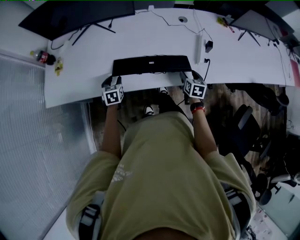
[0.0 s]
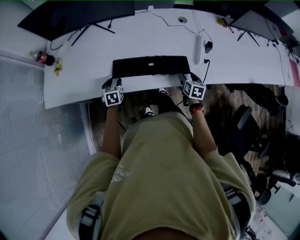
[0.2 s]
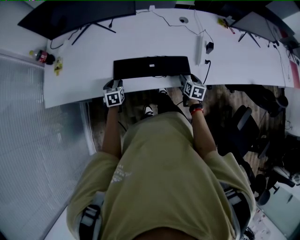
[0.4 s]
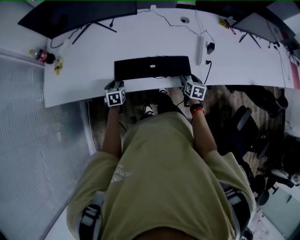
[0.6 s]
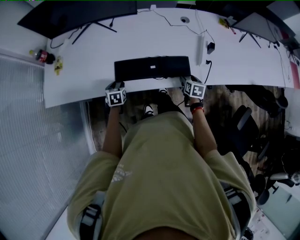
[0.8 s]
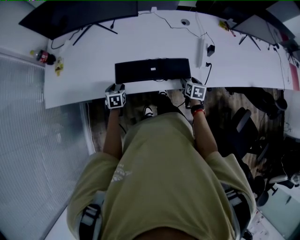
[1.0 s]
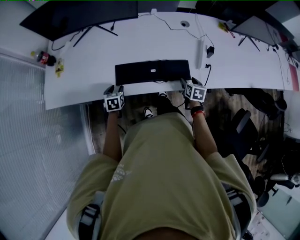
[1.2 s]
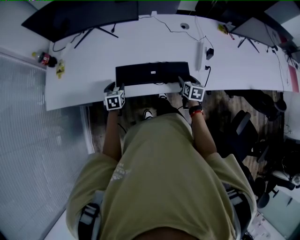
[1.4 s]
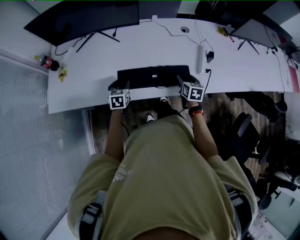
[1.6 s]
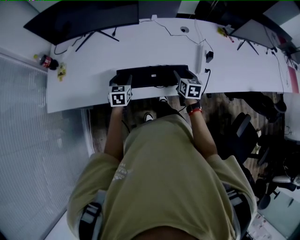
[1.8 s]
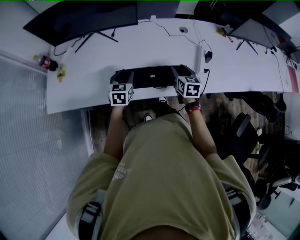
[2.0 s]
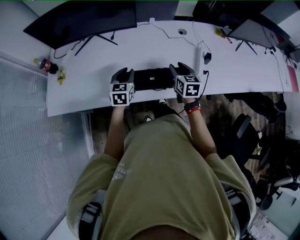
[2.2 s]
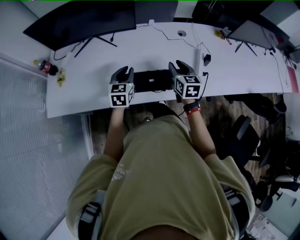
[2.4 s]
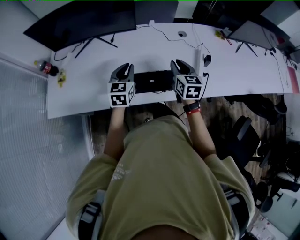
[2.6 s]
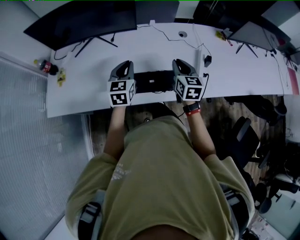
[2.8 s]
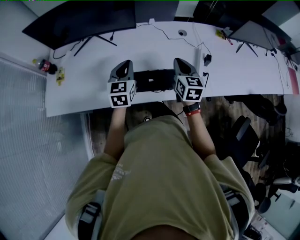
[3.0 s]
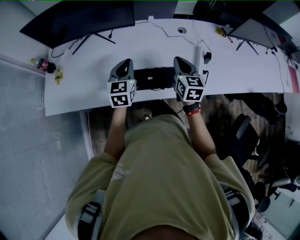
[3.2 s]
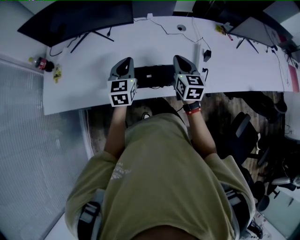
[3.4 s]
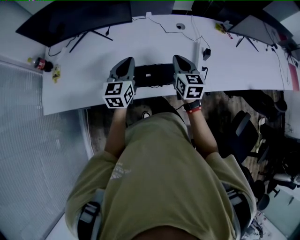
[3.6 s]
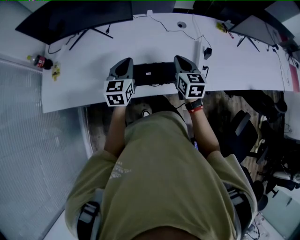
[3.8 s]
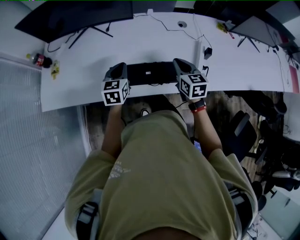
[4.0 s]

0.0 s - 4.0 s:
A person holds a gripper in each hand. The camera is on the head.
0.0 s - 1.4 s: The grippers stay close to where they were, moving slightly.
1.4 s - 2.6 s: The left gripper is displaced upward and to the right by approximately 20 cm, turns by some 30 degrees, and closes its fingers. Meanwhile the right gripper is displaced upward and to the left by roughly 20 cm, changes its angle by roughly 20 degrees, and closes up.
2.6 s - 4.0 s: The left gripper ends up roughly 5 cm from where it was.

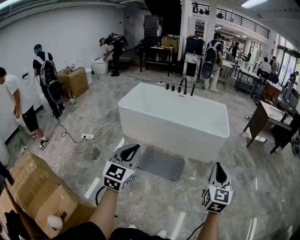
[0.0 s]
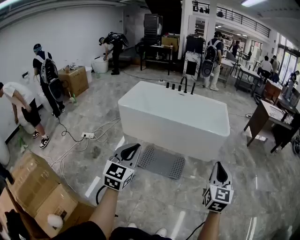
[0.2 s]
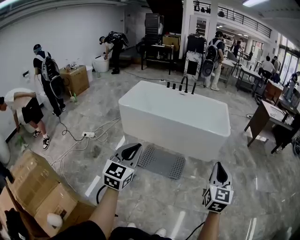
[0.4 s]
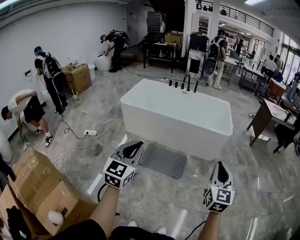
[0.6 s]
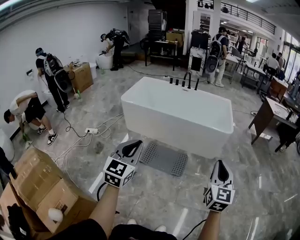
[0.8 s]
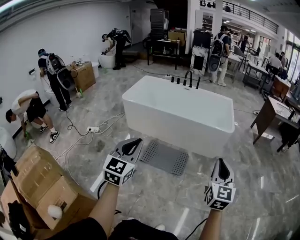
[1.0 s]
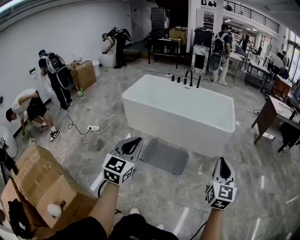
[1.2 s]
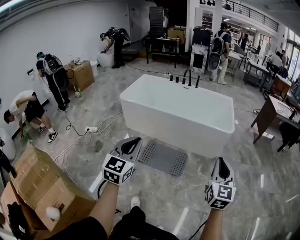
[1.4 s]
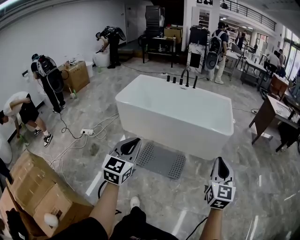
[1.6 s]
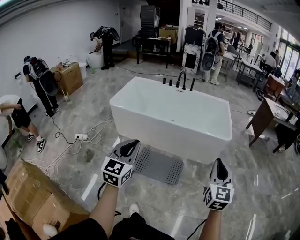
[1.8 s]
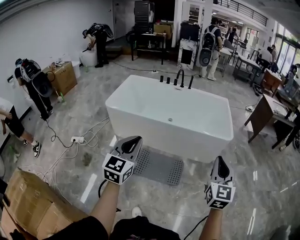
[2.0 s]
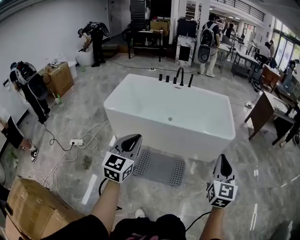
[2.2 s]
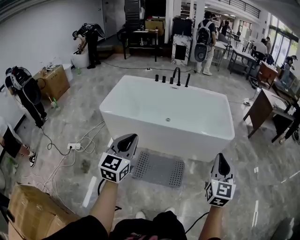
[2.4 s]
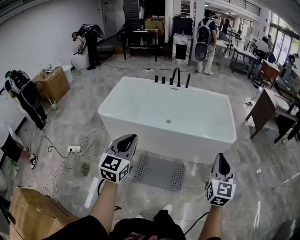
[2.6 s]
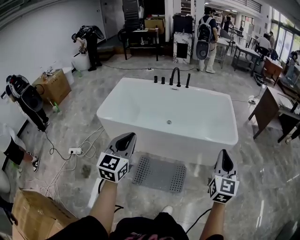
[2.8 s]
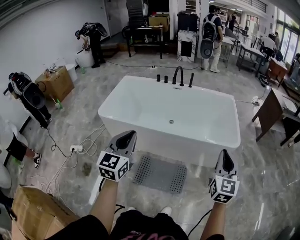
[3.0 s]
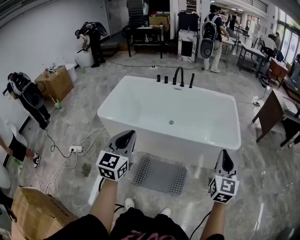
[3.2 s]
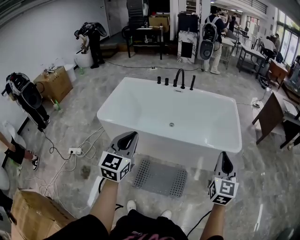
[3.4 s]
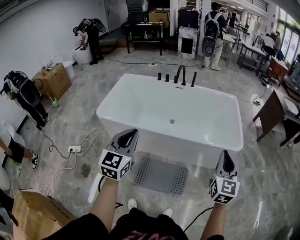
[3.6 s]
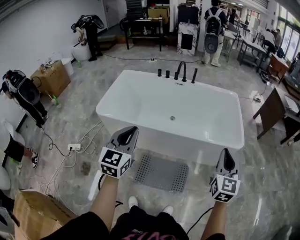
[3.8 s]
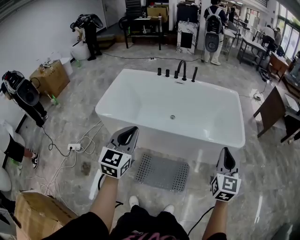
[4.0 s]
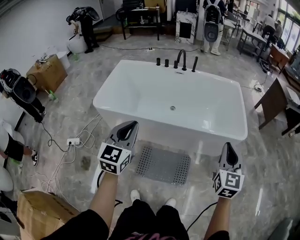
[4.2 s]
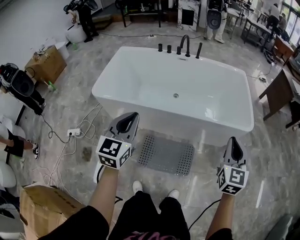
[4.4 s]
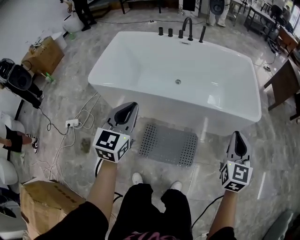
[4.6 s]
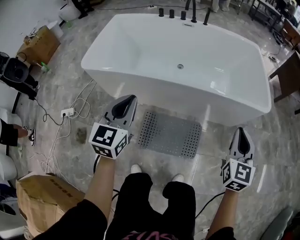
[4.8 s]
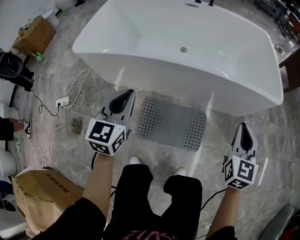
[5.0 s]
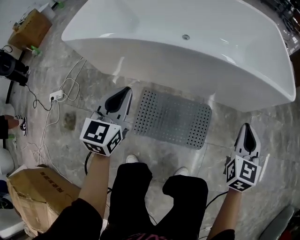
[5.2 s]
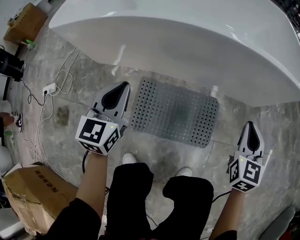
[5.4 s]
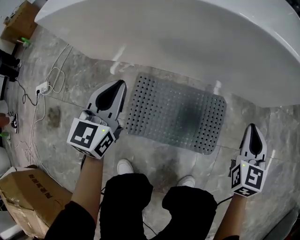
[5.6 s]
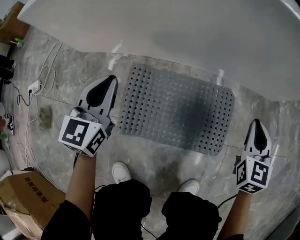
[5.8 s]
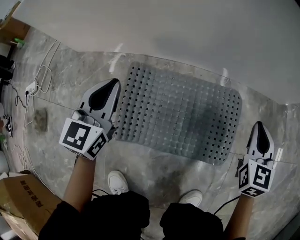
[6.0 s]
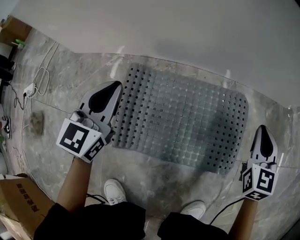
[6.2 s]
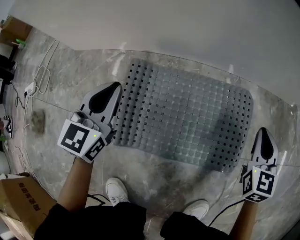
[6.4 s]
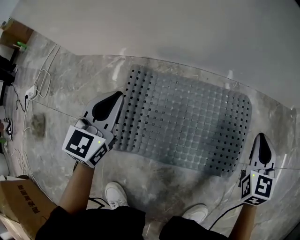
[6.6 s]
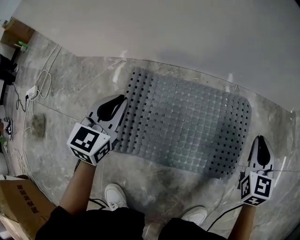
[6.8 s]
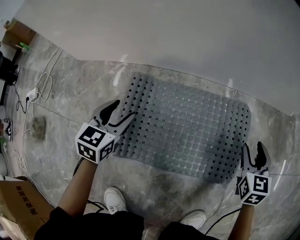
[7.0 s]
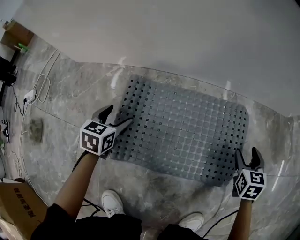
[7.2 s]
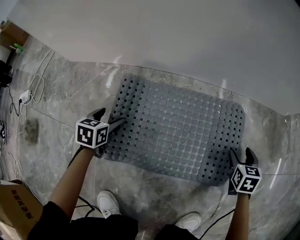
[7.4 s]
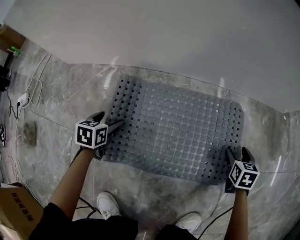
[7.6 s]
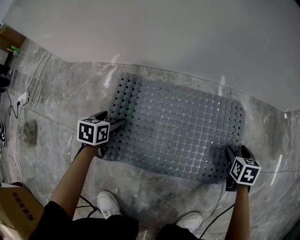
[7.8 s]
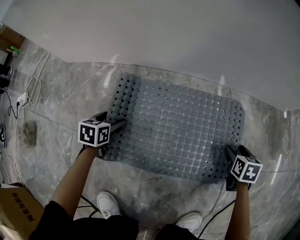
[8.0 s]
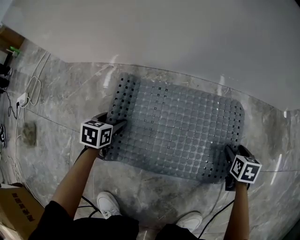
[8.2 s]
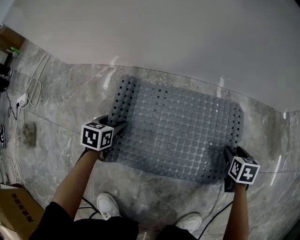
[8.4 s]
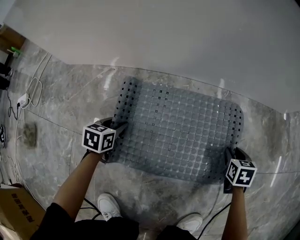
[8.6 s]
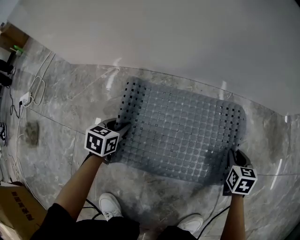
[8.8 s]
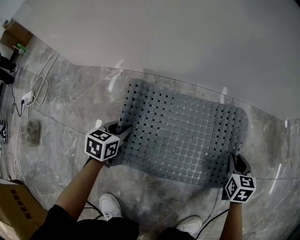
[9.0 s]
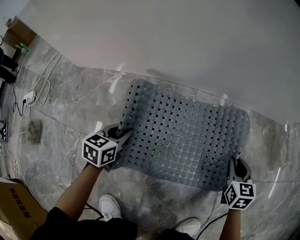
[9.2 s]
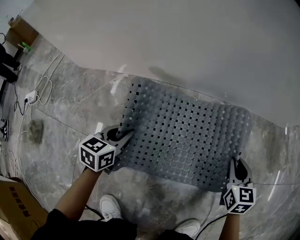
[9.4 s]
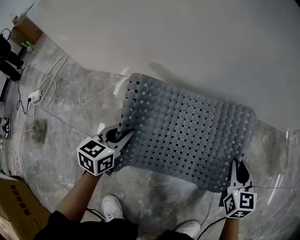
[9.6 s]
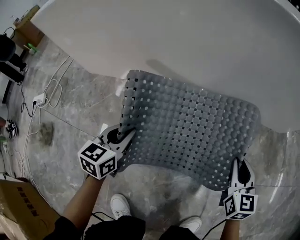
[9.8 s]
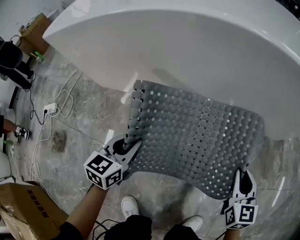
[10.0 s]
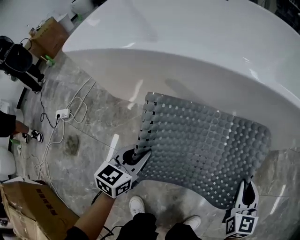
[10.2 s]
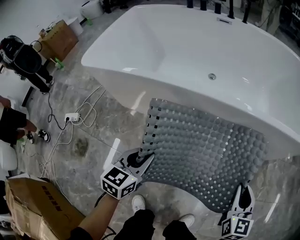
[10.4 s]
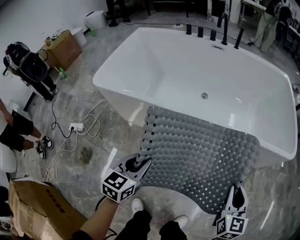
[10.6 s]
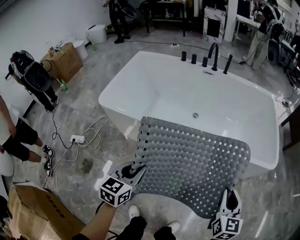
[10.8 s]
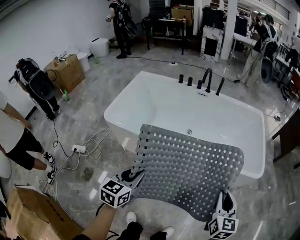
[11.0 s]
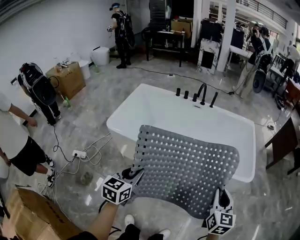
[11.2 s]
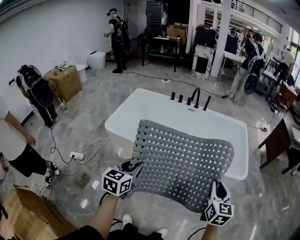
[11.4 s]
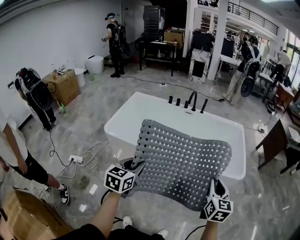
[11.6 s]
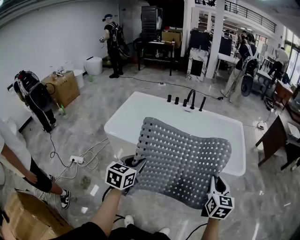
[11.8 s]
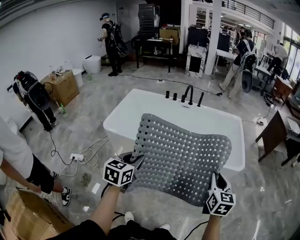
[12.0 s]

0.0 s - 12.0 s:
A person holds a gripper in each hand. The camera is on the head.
0.0 s - 1.6 s: Both grippers travel together forward, about 10 cm.
1.6 s - 3.0 s: Both grippers travel together forward, approximately 30 cm.
3.0 s - 4.4 s: The grippers both shift downward, forward and to the left by approximately 15 cm.
4.4 s - 6.0 s: The grippers both shift downward by roughly 70 cm.
6.0 s - 7.6 s: Both grippers move downward, about 25 cm. The right gripper points its fingers roughly 30 degrees further downward, and opens. Meanwhile the left gripper tilts its fingers roughly 40 degrees downward, and opens.
7.6 s - 9.0 s: The right gripper ends up roughly 5 cm from where it was, and closes; the left gripper shifts approximately 5 cm to the right, and closes up.
9.0 s - 10.4 s: The grippers both shift upward by some 50 cm. The right gripper changes its angle by approximately 20 degrees.
10.4 s - 12.0 s: Both grippers travel together upward, roughly 50 cm.

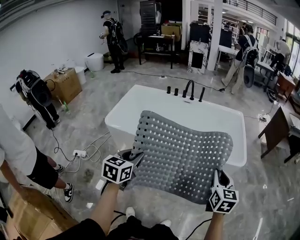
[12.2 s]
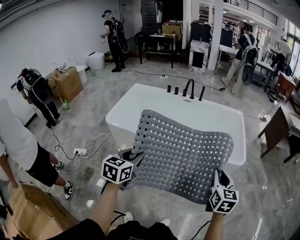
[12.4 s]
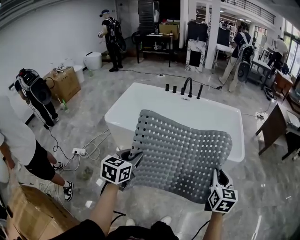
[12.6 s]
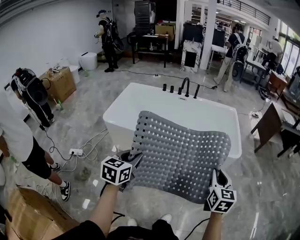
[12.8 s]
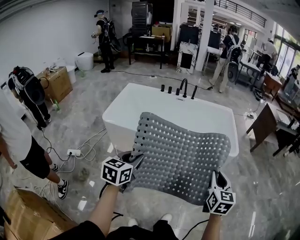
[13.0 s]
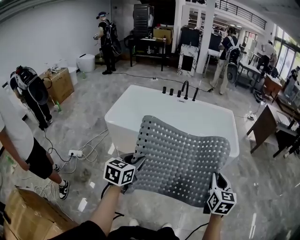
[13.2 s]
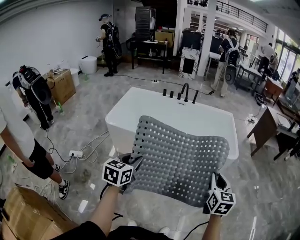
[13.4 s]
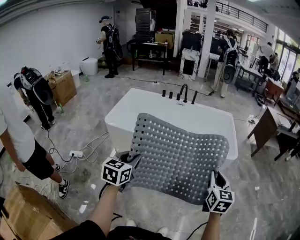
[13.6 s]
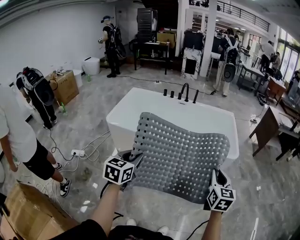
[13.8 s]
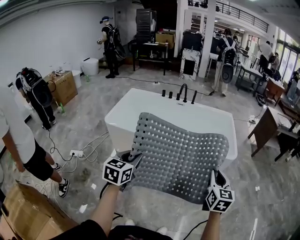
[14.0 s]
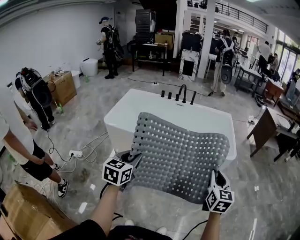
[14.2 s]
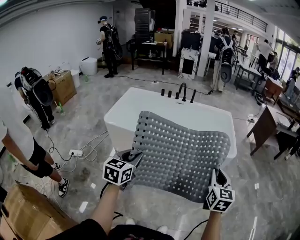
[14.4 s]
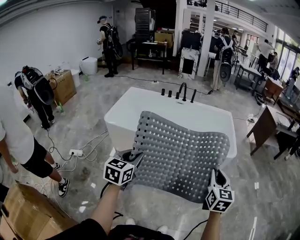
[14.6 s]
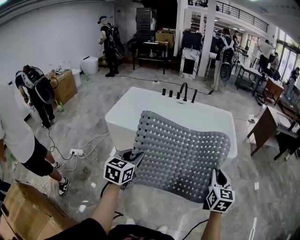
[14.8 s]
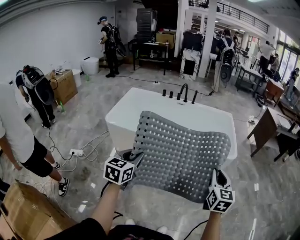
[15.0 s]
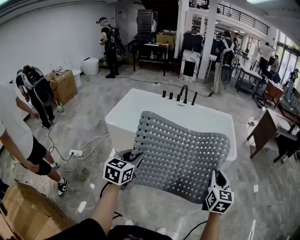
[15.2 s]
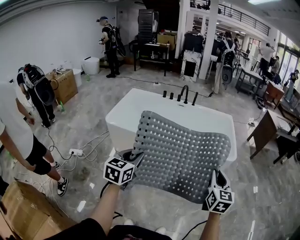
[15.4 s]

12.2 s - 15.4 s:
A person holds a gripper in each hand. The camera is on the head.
12.2 s - 13.8 s: Both grippers move backward, roughly 10 cm.
13.8 s - 15.4 s: The grippers make only small movements.

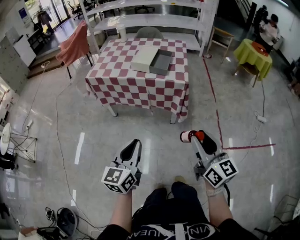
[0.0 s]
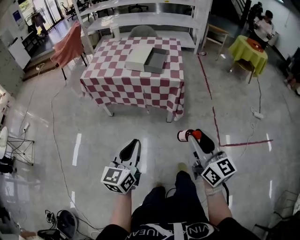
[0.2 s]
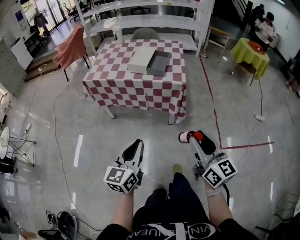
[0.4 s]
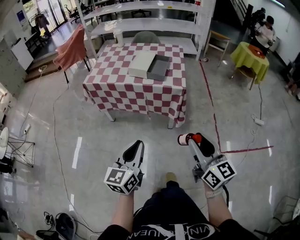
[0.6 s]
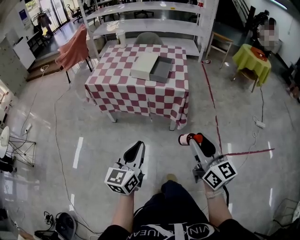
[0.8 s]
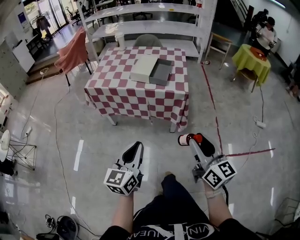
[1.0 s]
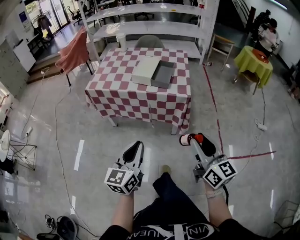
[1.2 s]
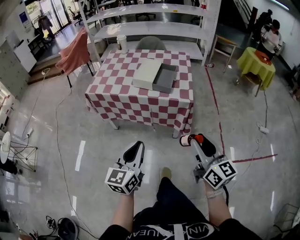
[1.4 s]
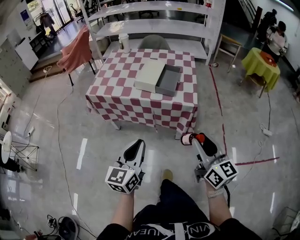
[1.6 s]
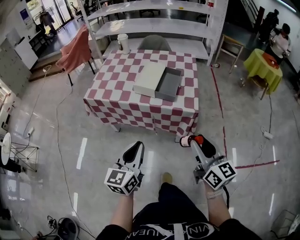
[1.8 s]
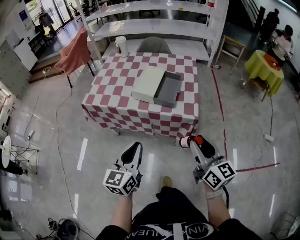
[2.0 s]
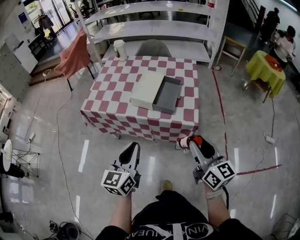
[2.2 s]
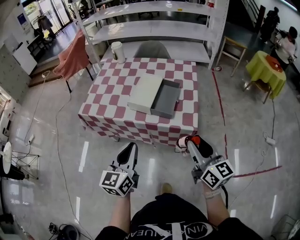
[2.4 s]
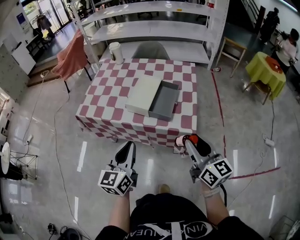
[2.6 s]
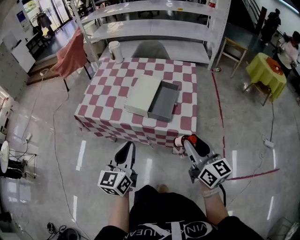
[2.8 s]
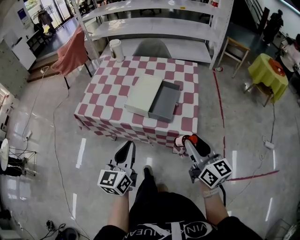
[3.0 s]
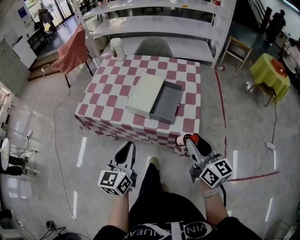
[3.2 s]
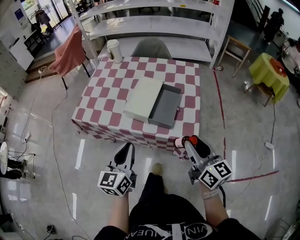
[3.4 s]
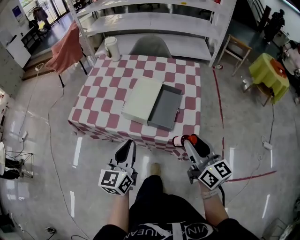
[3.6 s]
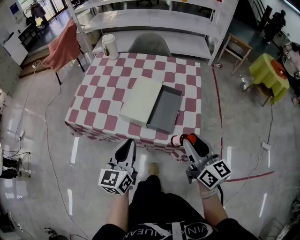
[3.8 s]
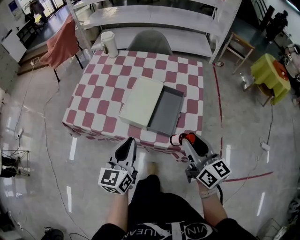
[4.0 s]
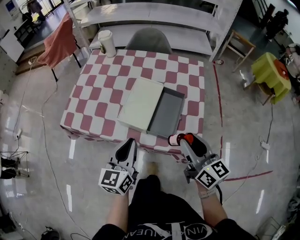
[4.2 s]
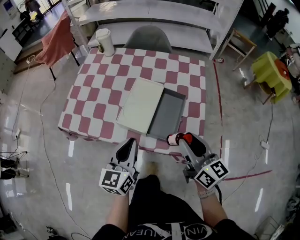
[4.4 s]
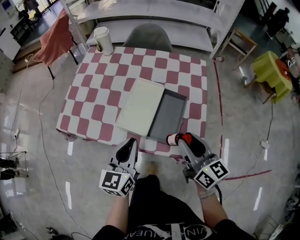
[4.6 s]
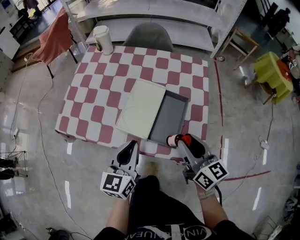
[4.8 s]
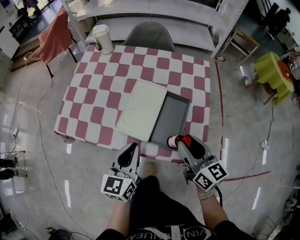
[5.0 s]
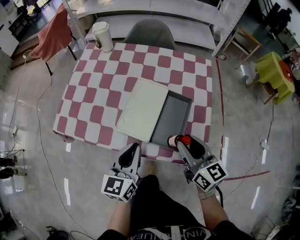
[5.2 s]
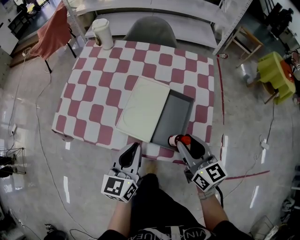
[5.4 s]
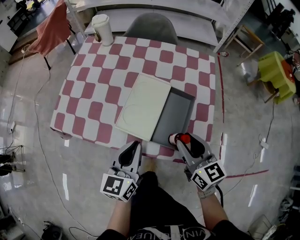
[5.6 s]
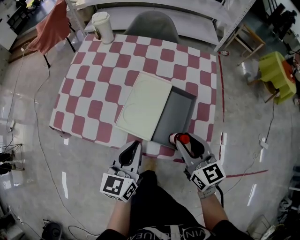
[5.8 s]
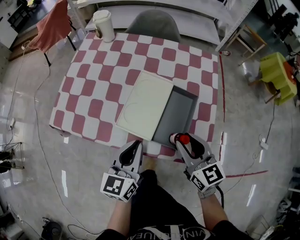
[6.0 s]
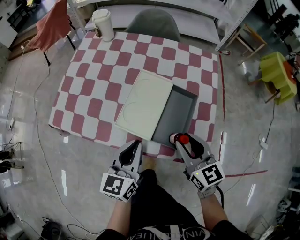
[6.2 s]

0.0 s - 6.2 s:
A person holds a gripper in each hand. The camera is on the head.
0.0 s - 1.6 s: The grippers both shift forward by about 15 cm.
1.6 s - 3.2 s: Both grippers move forward, roughly 20 cm.
3.2 s - 4.6 s: The grippers both shift forward by some 15 cm.
4.6 s - 6.2 s: The right gripper is displaced downward by about 5 cm, and rotates approximately 20 degrees.
